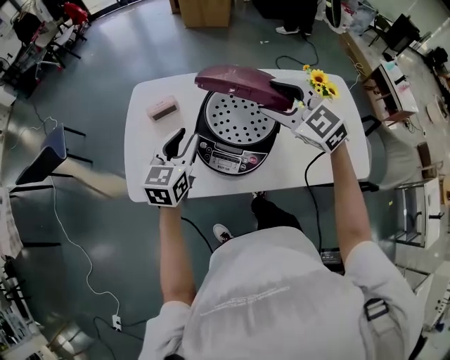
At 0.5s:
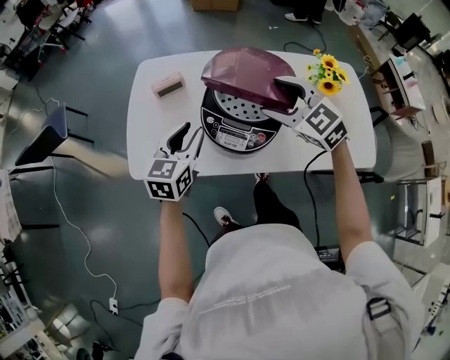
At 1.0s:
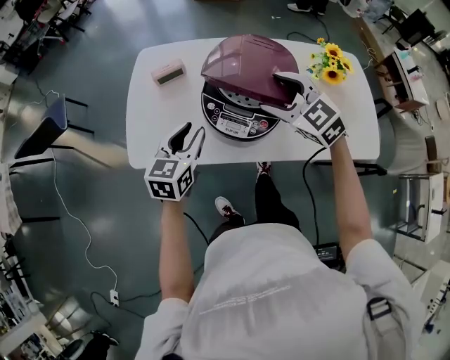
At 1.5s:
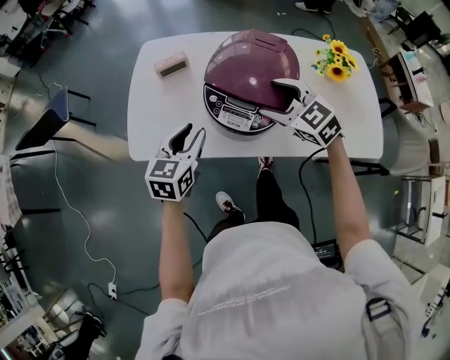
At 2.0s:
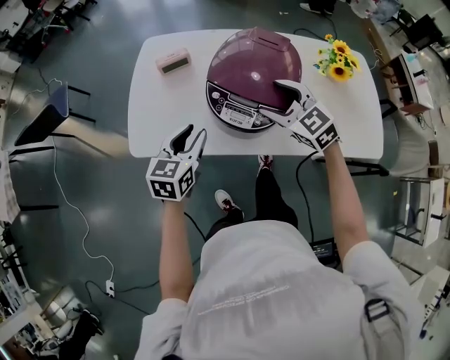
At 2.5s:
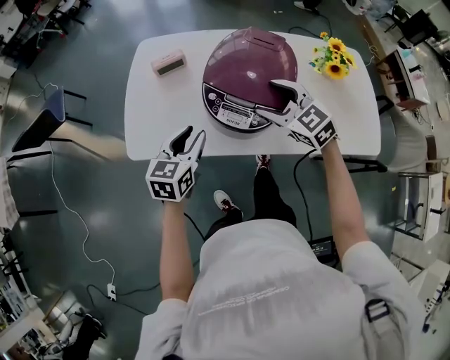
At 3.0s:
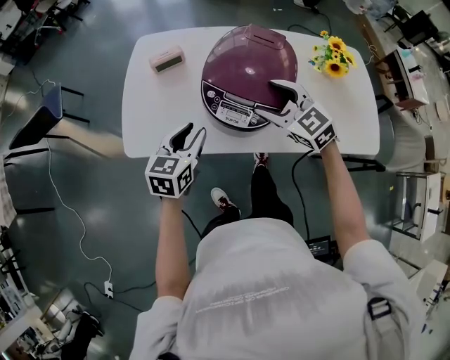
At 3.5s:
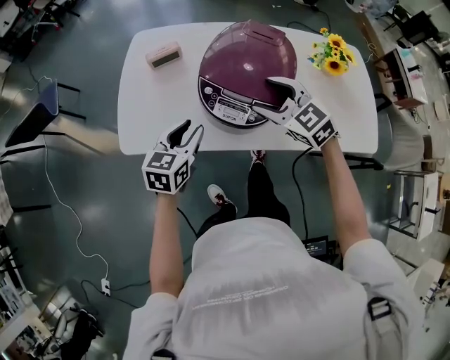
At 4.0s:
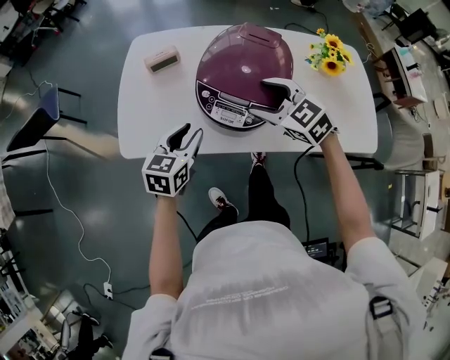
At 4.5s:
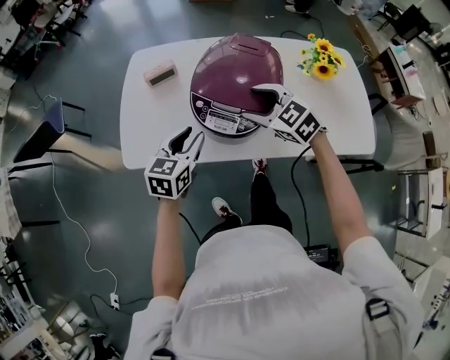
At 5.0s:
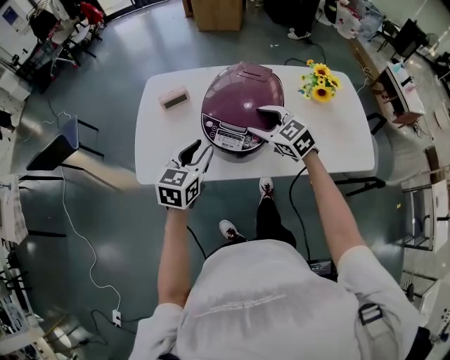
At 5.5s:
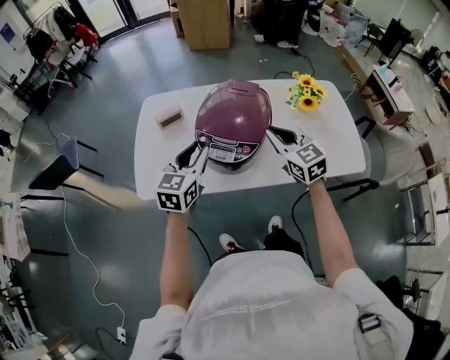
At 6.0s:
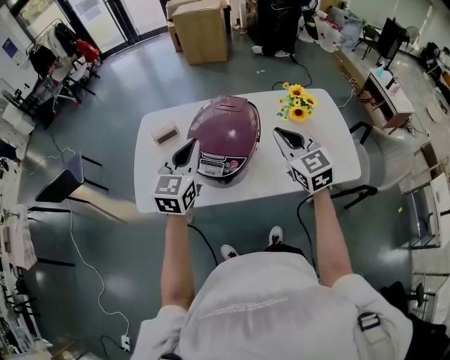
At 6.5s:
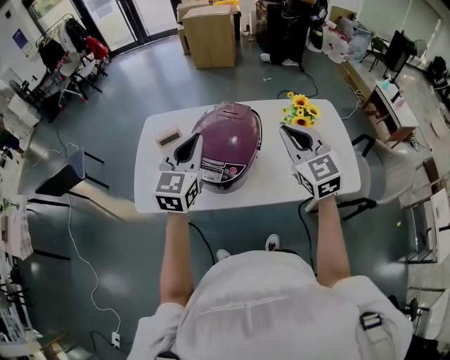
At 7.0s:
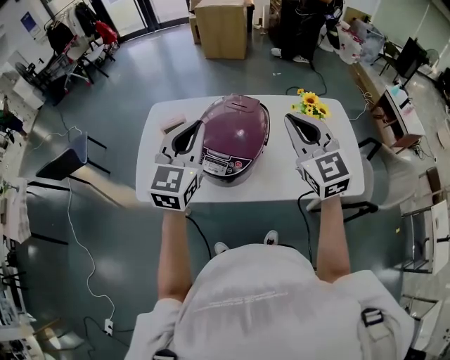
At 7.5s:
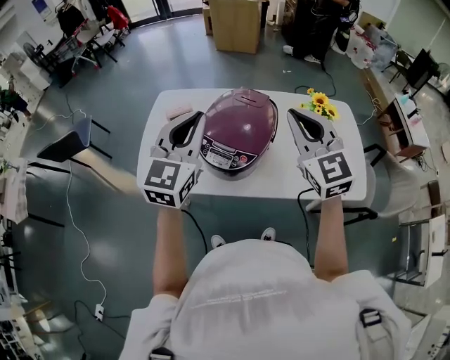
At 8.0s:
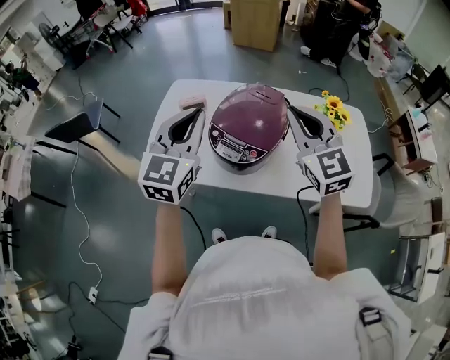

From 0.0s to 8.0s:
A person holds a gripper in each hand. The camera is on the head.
From 0.0s to 2.0s: The left gripper shifts some 15 cm backward and downward. The right gripper moves downward and backward, about 15 cm.
From 2.0s to 4.0s: The grippers make only small movements.
From 4.0s to 6.0s: The right gripper travels to the right and upward by some 20 cm, swivels about 40 degrees, and closes up; the left gripper heads upward and to the right, covering about 20 cm, changes its angle by approximately 30 degrees, and closes.
From 6.0s to 8.0s: The left gripper heads upward, covering roughly 10 cm; the right gripper shifts some 10 cm upward and to the left.

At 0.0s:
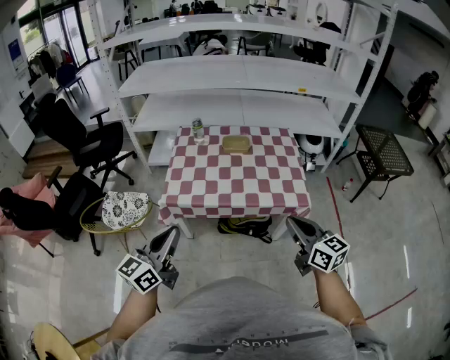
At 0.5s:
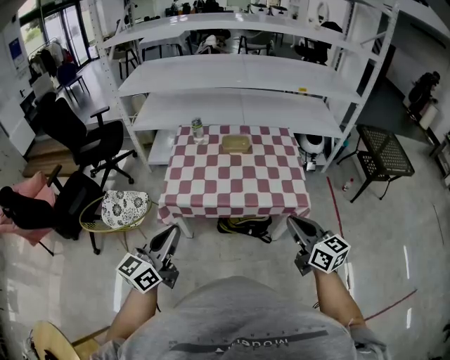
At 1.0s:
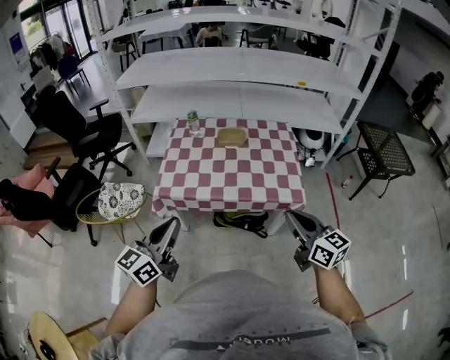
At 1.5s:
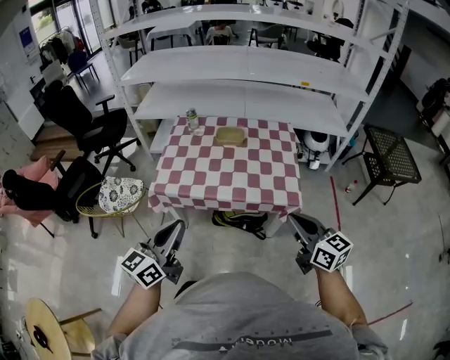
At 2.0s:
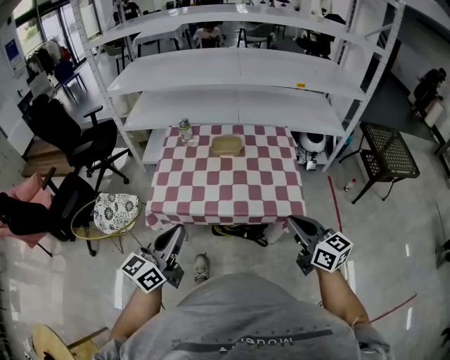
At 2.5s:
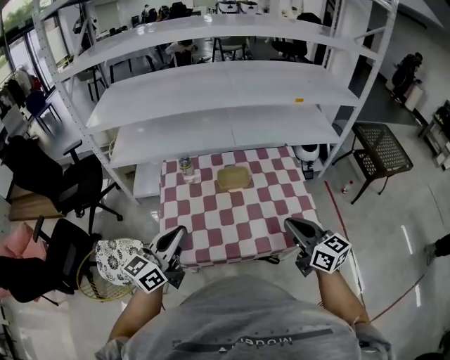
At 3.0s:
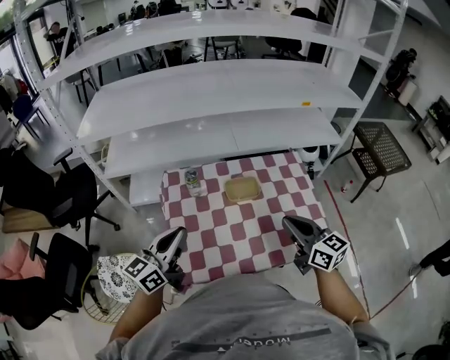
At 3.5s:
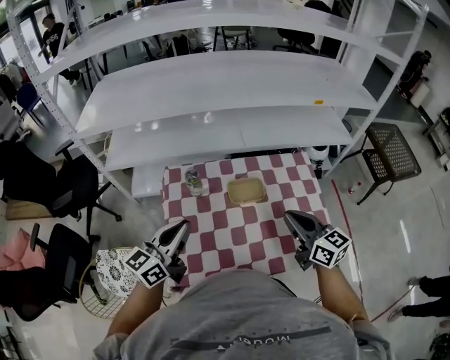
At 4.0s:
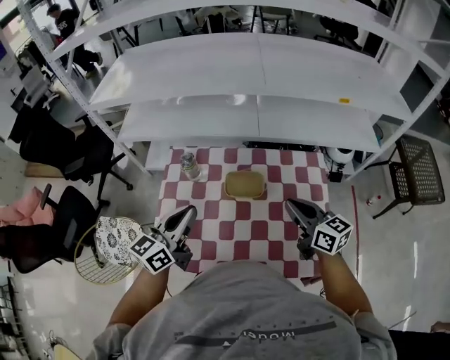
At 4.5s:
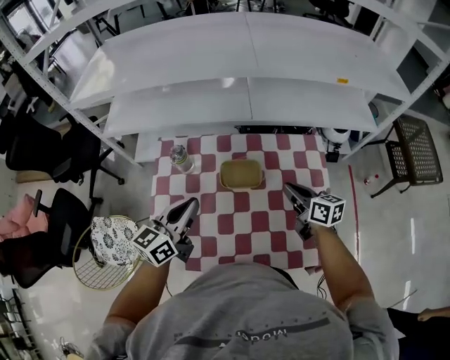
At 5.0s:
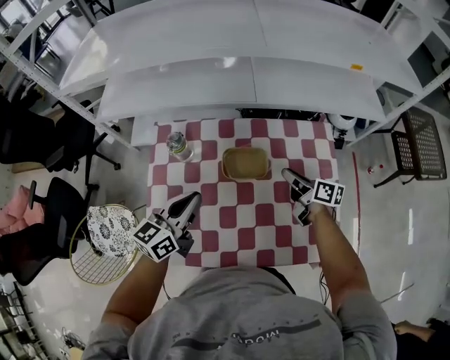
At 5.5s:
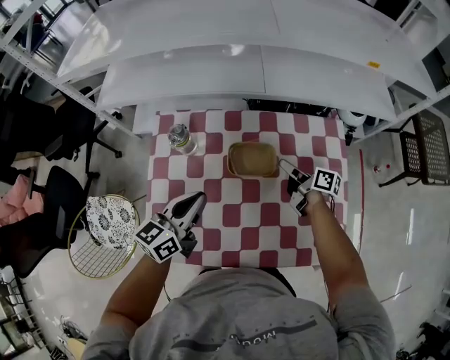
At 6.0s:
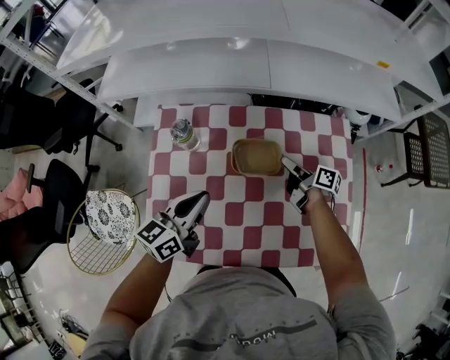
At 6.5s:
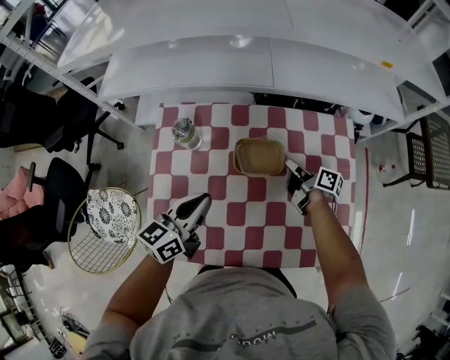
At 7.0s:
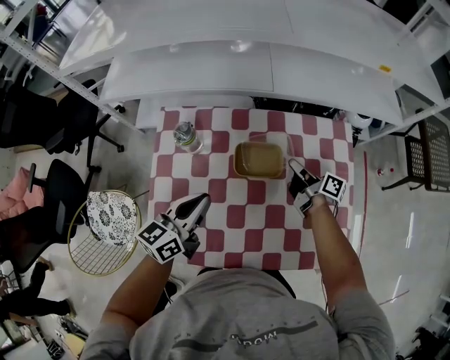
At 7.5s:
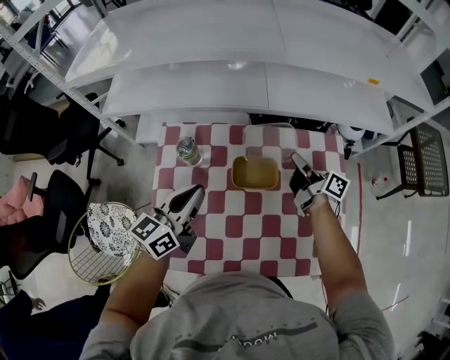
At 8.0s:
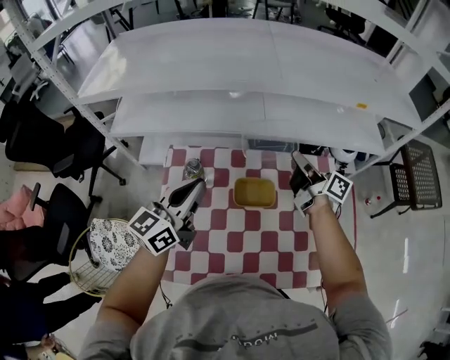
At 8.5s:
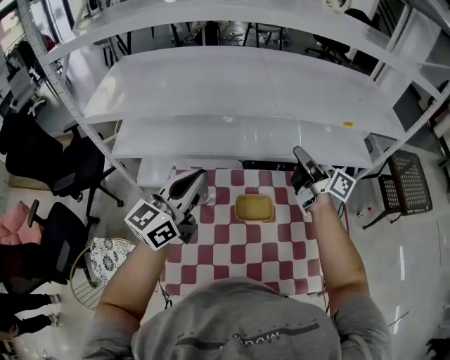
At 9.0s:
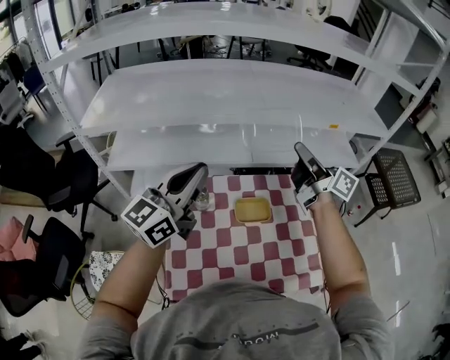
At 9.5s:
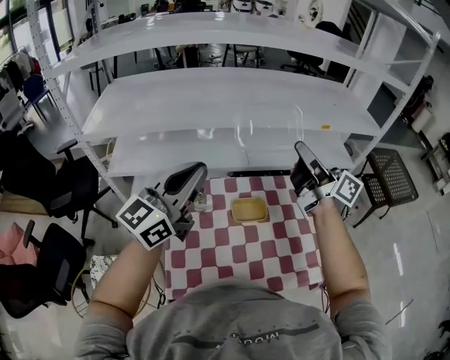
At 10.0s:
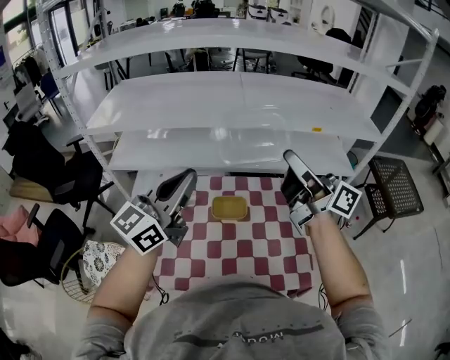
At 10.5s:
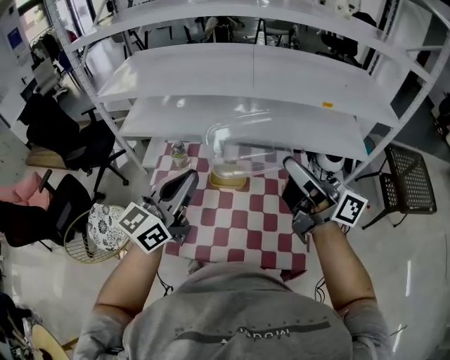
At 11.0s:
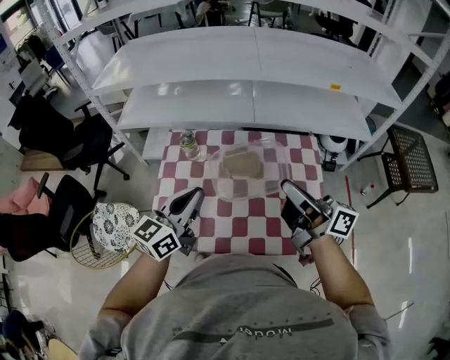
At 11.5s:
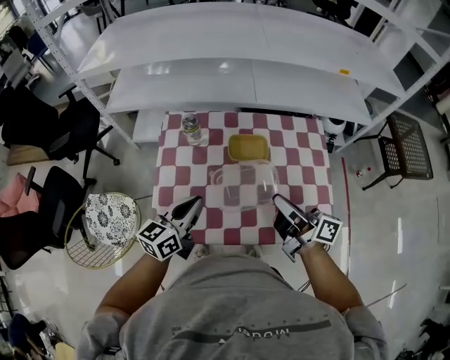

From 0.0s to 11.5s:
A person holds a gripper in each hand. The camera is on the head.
From 0.0s to 2.0s: The left gripper heads to the right and forward, covering approximately 10 cm. The right gripper goes roughly 10 cm forward and to the right.
From 2.0s to 4.0s: Both grippers move forward, approximately 35 cm.
From 4.0s to 6.0s: The left gripper travels downward by approximately 15 cm. The right gripper travels downward and forward by some 25 cm, rolls clockwise, seen from behind, by roughly 50 degrees, and opens its fingers.
From 6.0s to 7.5s: The left gripper heads upward, covering roughly 5 cm, while the right gripper is displaced upward by approximately 10 cm, and closes its fingers.
From 7.5s to 9.5s: Both grippers move upward, approximately 30 cm. The right gripper changes its angle by approximately 40 degrees, while the left gripper swivels approximately 30 degrees.
From 9.5s to 11.5s: The grippers both shift downward and backward by about 30 cm. The left gripper swivels roughly 30 degrees; the right gripper swivels some 30 degrees.

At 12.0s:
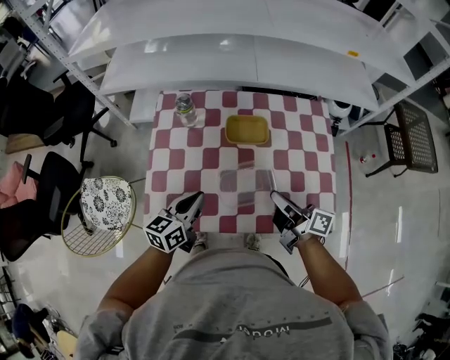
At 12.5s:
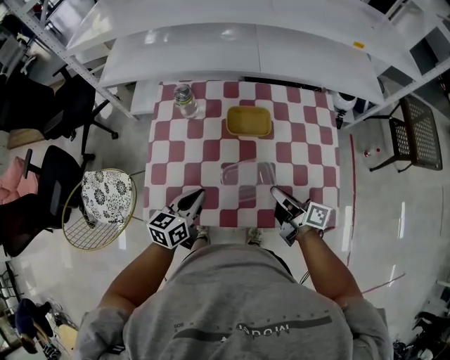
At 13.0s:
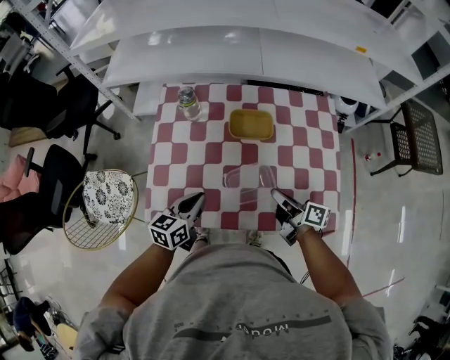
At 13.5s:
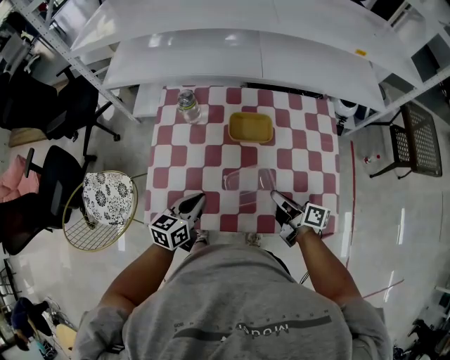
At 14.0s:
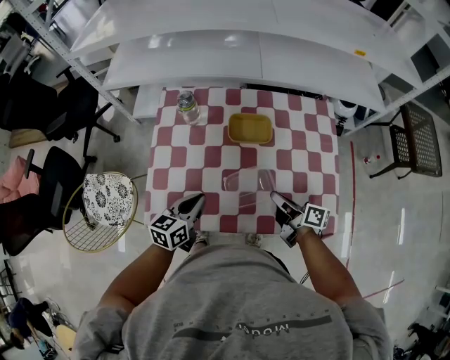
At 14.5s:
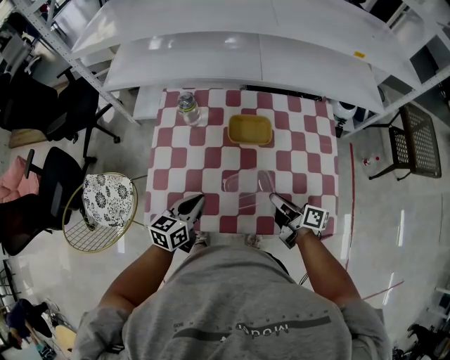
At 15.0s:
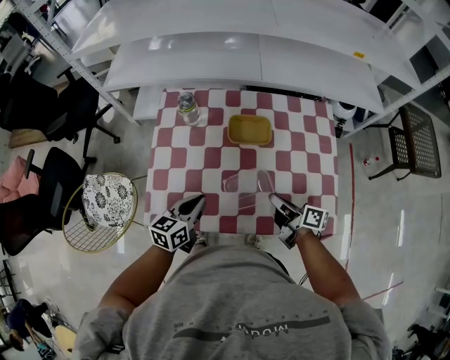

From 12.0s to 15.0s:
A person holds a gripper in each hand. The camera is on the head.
From 12.0s to 13.5s: The right gripper shifts about 10 cm downward.
From 13.5s to 15.0s: Both grippers stay put.

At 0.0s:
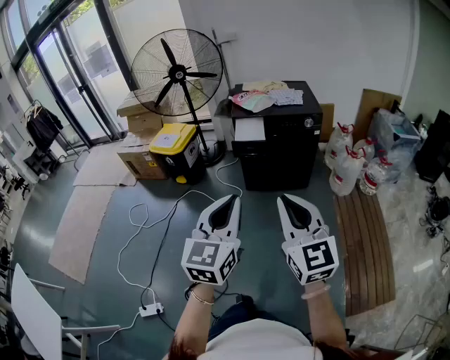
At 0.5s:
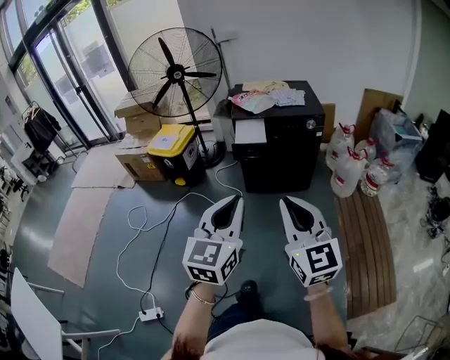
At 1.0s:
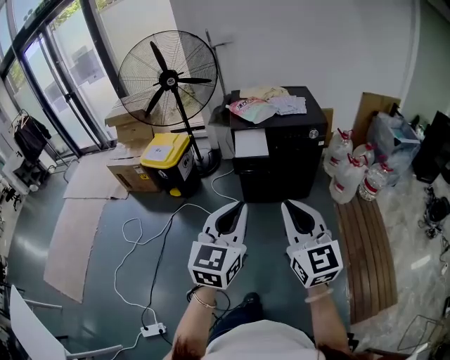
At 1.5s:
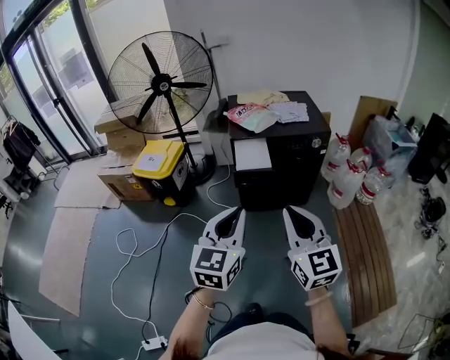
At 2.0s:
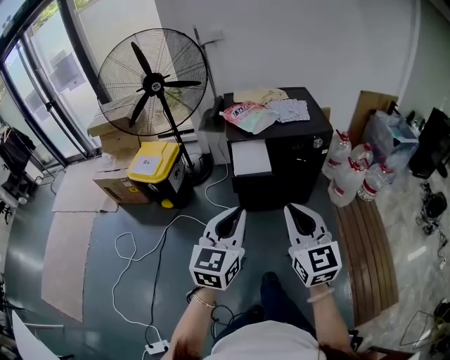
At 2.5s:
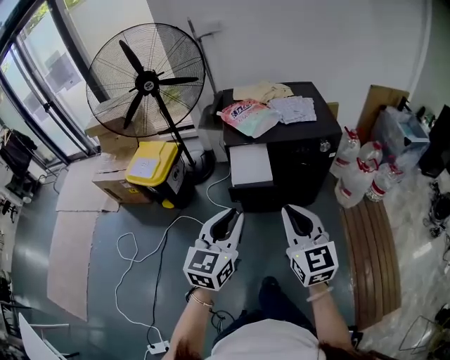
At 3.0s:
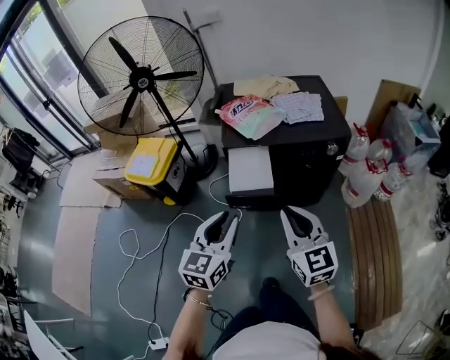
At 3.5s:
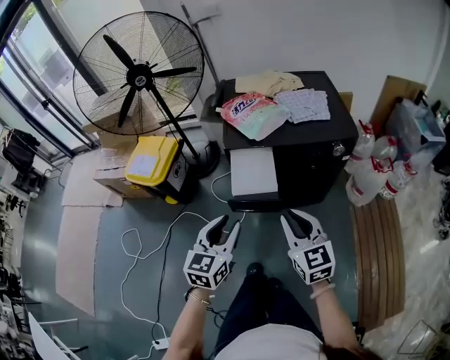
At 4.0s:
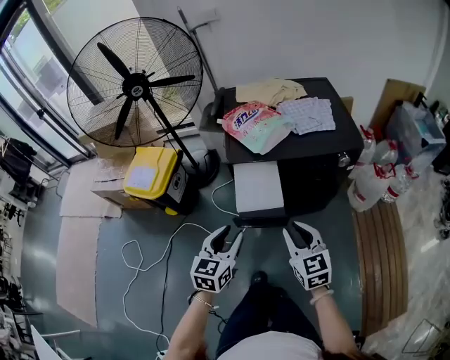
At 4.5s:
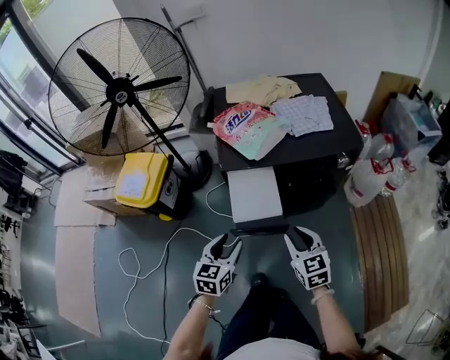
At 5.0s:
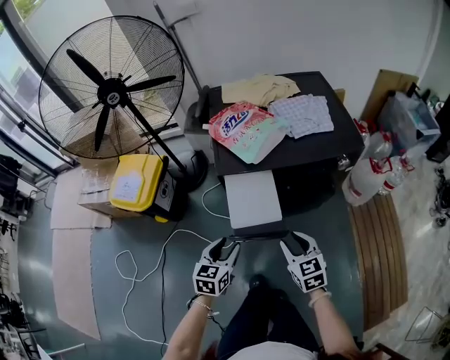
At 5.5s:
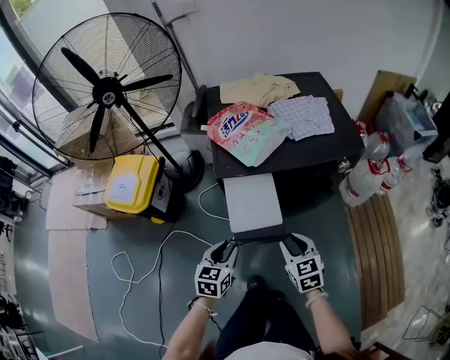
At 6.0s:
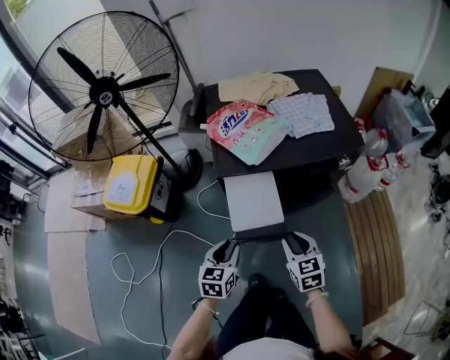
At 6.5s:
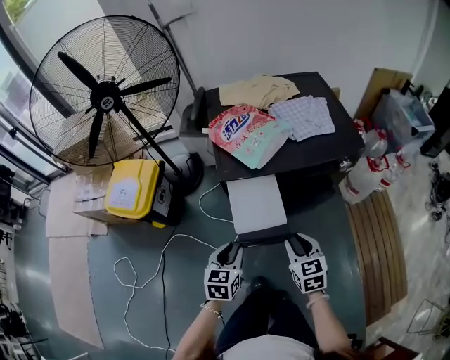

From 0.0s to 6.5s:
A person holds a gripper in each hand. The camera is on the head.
From 0.0s to 2.0s: The two grippers go roughly 25 cm forward.
From 2.0s to 4.5s: The two grippers go some 35 cm forward and downward. The left gripper turns by some 20 degrees, and opens up; the right gripper swivels some 30 degrees, and opens up.
From 4.5s to 6.5s: The left gripper ends up roughly 5 cm from where it was.
